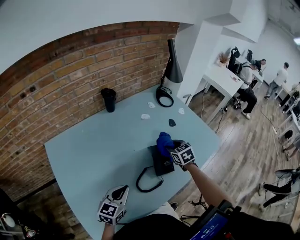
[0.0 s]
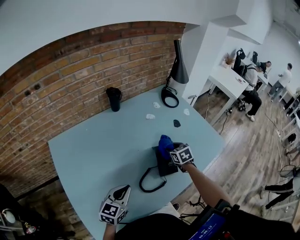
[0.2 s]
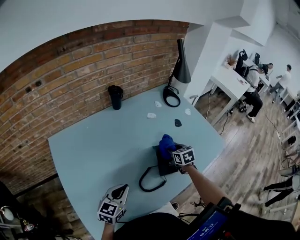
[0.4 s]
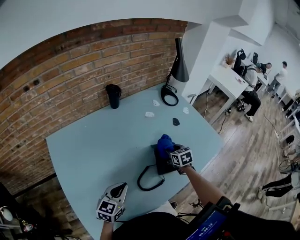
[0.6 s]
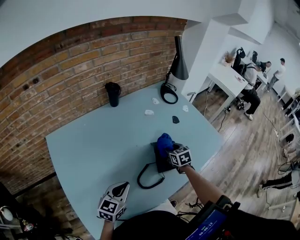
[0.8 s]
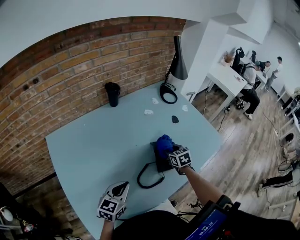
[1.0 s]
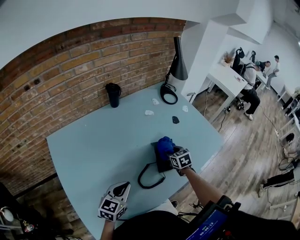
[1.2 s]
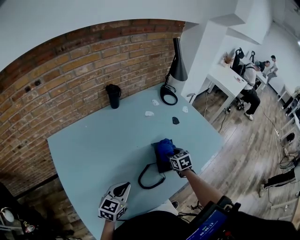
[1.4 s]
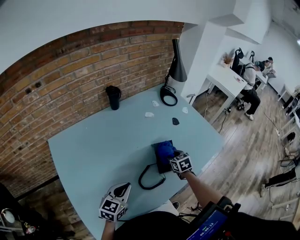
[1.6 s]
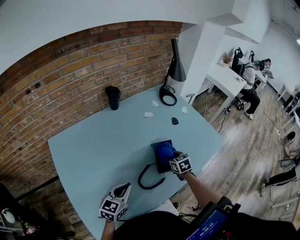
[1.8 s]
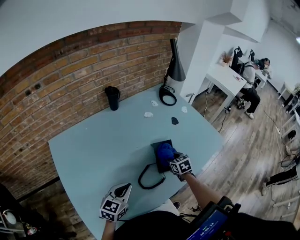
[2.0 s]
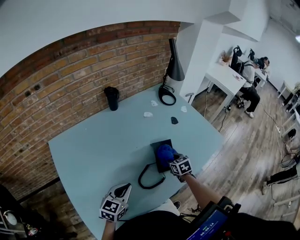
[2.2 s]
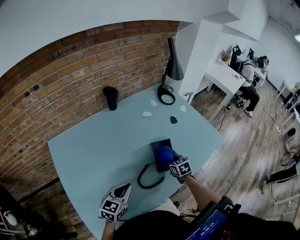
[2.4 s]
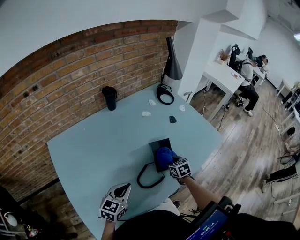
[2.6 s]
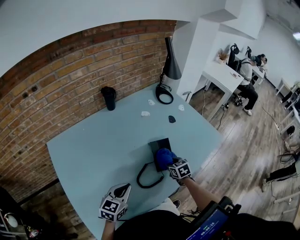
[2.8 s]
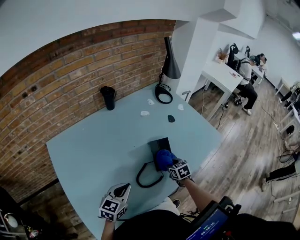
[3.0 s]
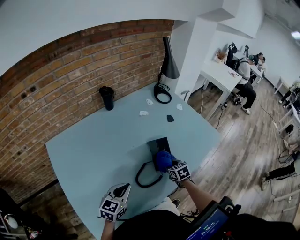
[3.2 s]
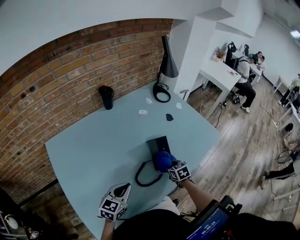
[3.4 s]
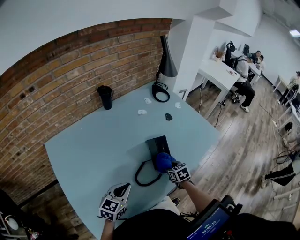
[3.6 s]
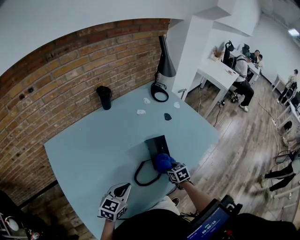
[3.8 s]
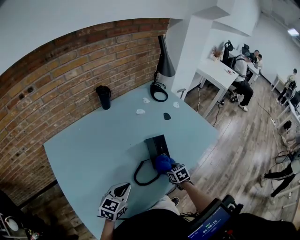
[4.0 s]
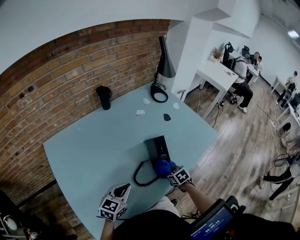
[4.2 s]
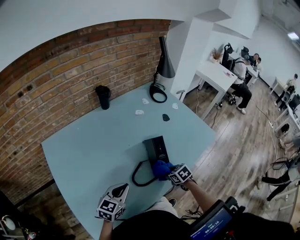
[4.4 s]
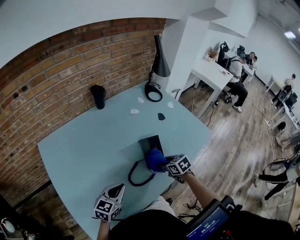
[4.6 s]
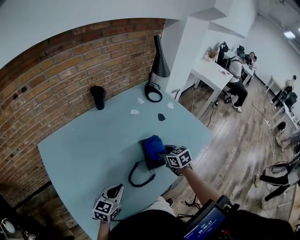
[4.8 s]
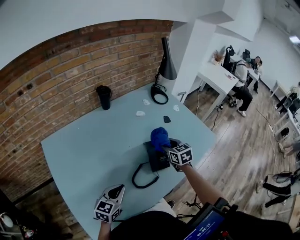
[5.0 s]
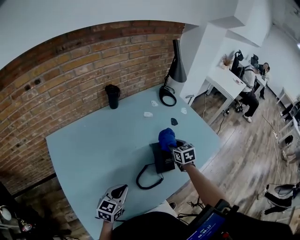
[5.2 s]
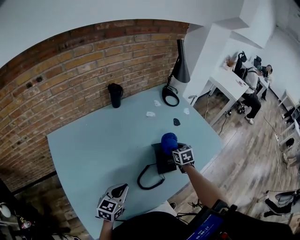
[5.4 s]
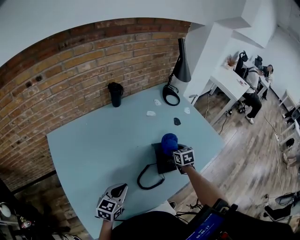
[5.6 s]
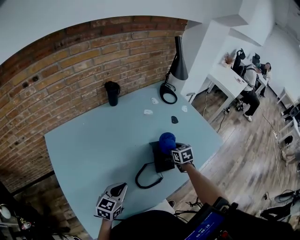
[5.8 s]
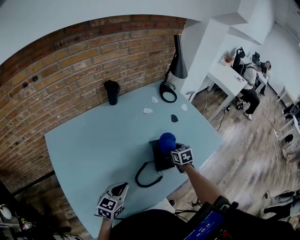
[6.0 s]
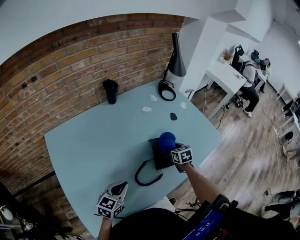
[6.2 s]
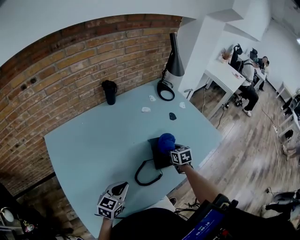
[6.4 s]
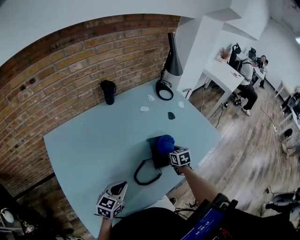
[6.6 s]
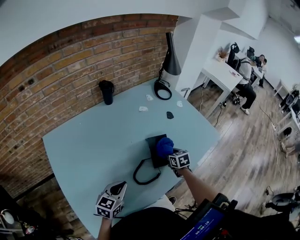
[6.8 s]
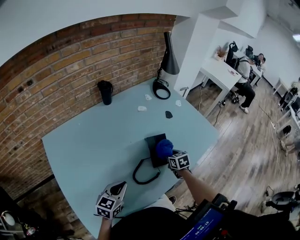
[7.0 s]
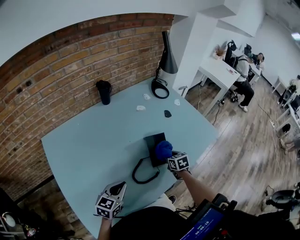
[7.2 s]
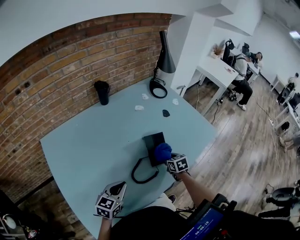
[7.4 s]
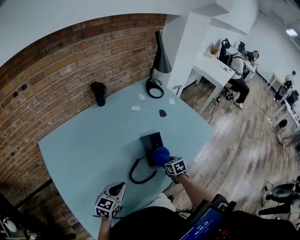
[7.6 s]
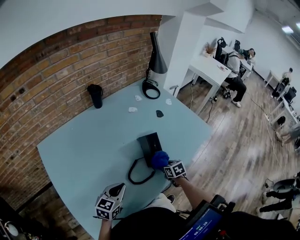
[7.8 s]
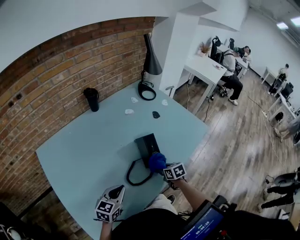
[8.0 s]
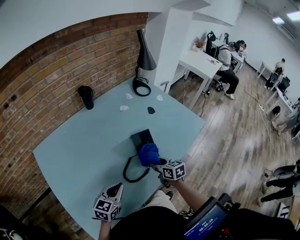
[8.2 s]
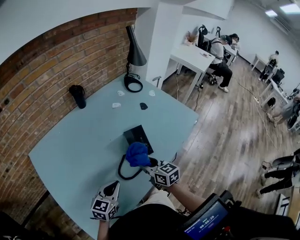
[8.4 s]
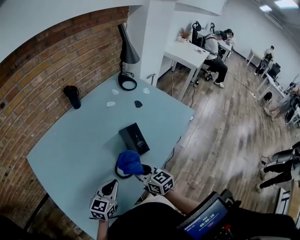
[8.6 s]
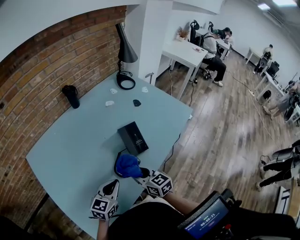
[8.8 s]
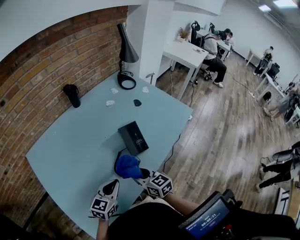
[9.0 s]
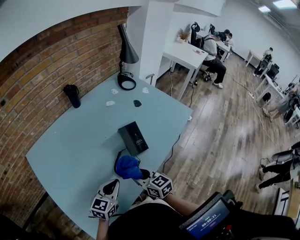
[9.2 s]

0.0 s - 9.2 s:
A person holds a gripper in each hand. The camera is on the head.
0.0 s - 1.6 s: The right gripper goes approximately 5 cm downward.
1.6 s - 3.0 s: The right gripper moves backward, approximately 5 cm.
3.0 s - 4.6 s: The right gripper moves approximately 5 cm.
4.6 s - 6.2 s: The right gripper goes approximately 10 cm forward.
6.2 s - 7.6 s: The right gripper travels backward and downward by approximately 10 cm.
7.6 s - 9.2 s: The left gripper shifts by approximately 5 cm. Meanwhile the right gripper shifts roughly 20 cm backward, upward and to the left, and points its fingers about 30 degrees further upward.

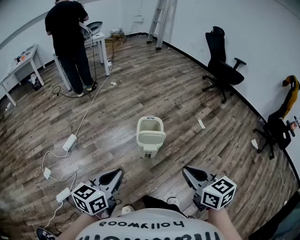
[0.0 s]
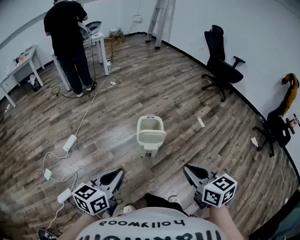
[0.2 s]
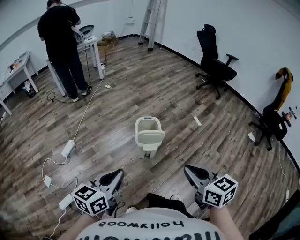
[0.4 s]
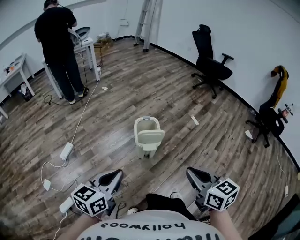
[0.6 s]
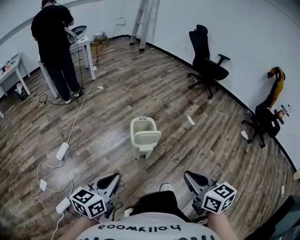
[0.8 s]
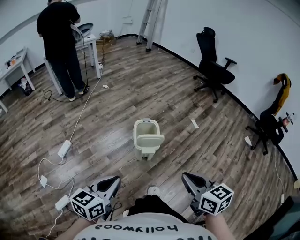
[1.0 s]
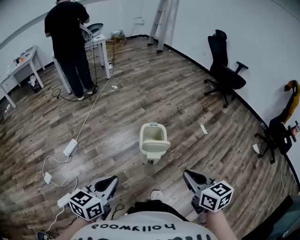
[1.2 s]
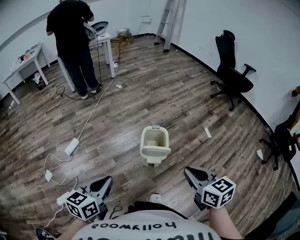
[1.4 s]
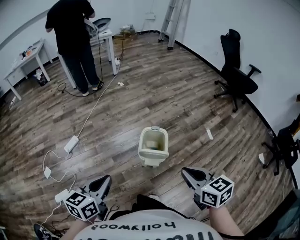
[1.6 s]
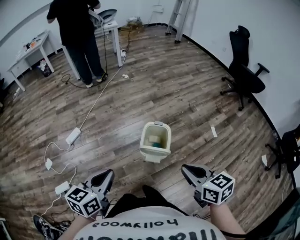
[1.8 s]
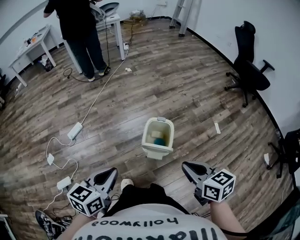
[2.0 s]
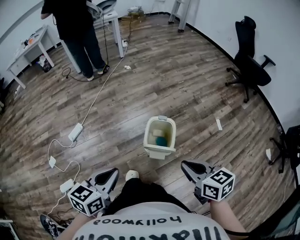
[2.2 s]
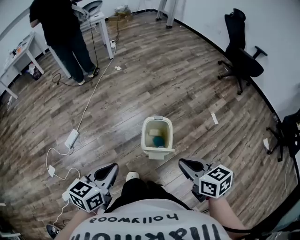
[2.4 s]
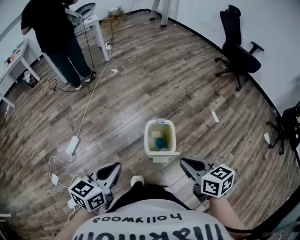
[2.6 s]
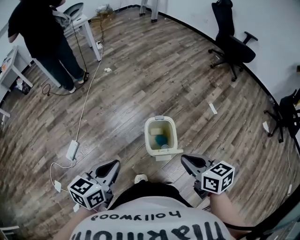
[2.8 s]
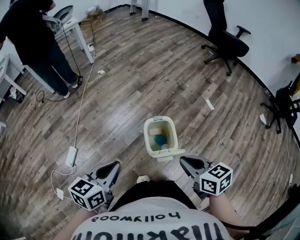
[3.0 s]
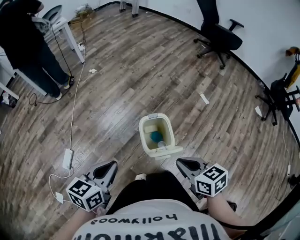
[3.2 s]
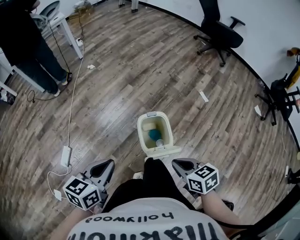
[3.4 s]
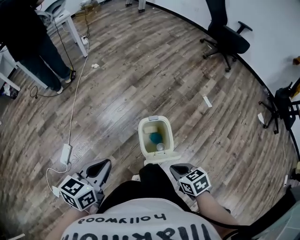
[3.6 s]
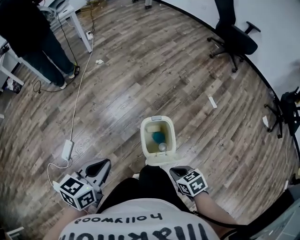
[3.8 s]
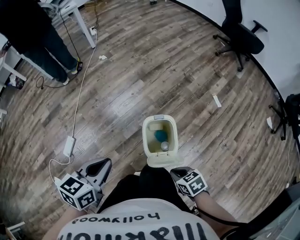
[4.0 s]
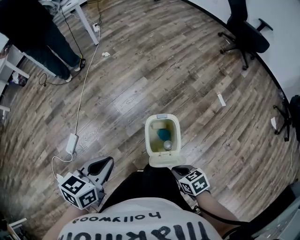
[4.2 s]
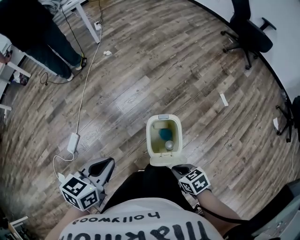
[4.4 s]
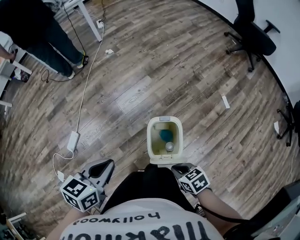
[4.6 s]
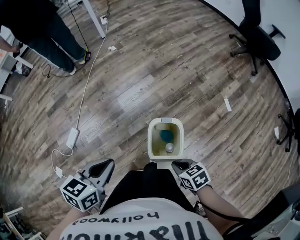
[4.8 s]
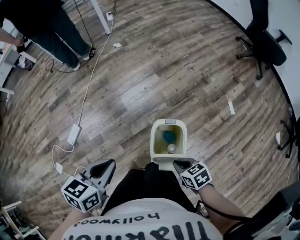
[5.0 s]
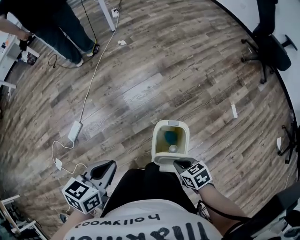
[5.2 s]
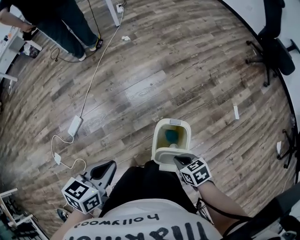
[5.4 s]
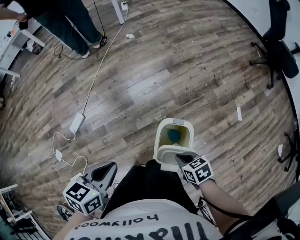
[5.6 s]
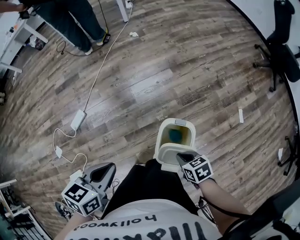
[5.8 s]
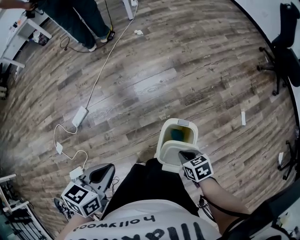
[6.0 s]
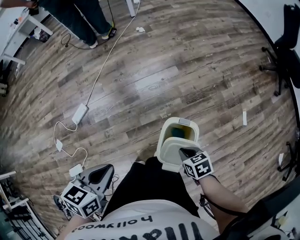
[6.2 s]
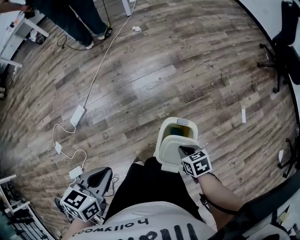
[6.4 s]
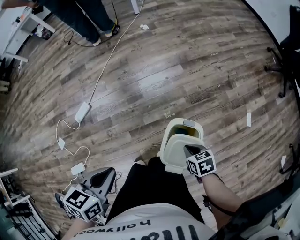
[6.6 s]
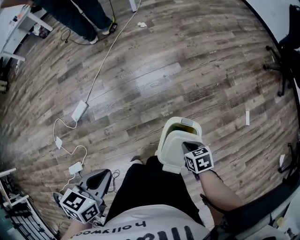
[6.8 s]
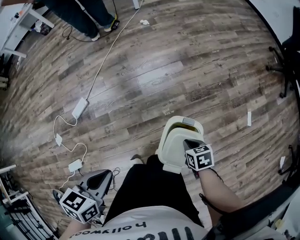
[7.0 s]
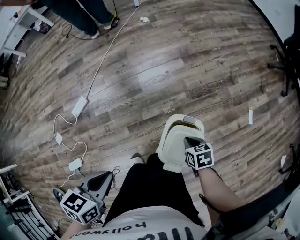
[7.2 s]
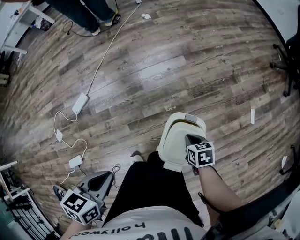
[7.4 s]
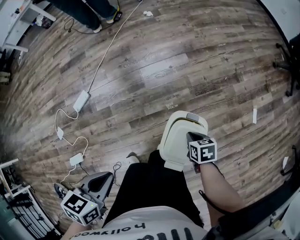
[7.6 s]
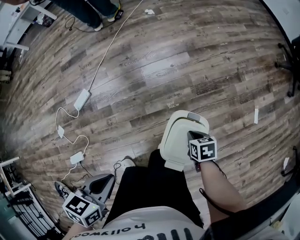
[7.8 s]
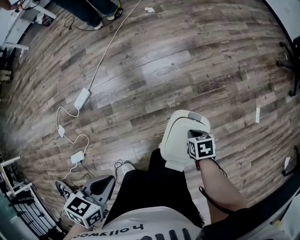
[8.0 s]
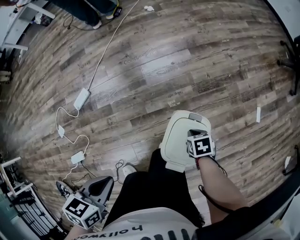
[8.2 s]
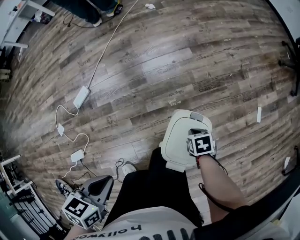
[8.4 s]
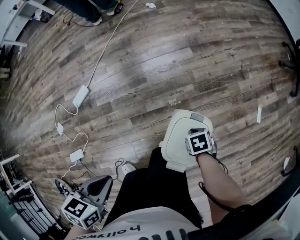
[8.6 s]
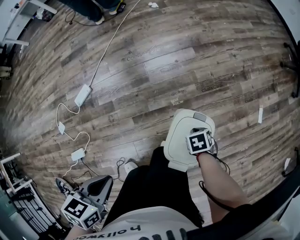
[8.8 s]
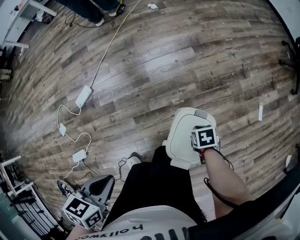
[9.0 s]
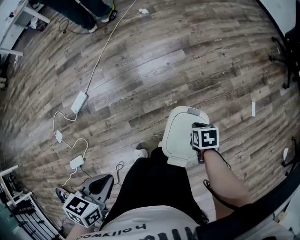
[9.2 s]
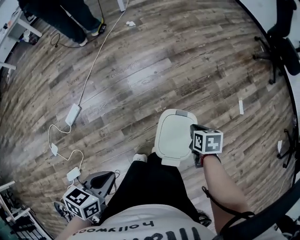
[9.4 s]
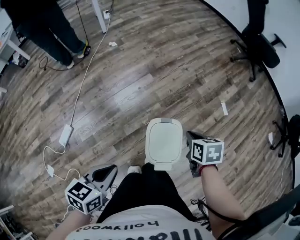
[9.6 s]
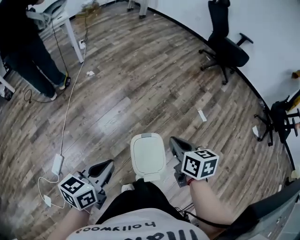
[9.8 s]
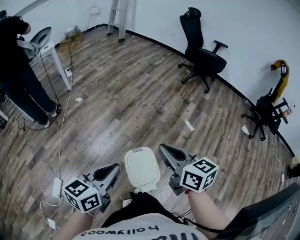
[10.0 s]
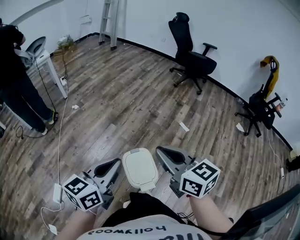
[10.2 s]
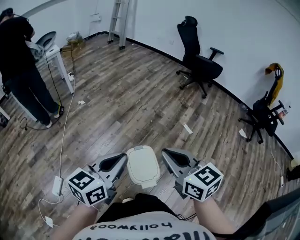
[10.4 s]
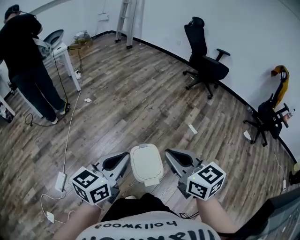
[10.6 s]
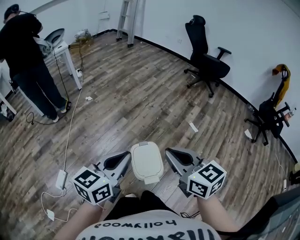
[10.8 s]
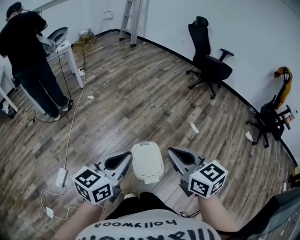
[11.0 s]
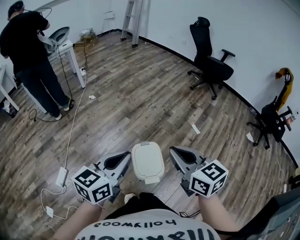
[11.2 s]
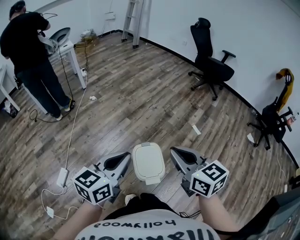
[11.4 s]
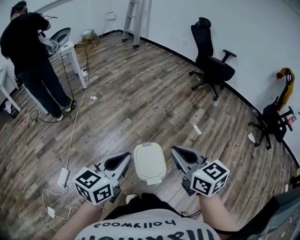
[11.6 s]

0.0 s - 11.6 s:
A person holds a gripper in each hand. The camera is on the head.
0.0 s - 1.4 s: The left gripper is displaced forward and to the left by about 10 cm. The right gripper shifts about 10 cm forward.
1.4 s - 2.8 s: The left gripper shifts about 20 cm forward. The right gripper goes approximately 15 cm forward and downward.
2.8 s - 4.4 s: The left gripper moves forward, some 10 cm, while the right gripper shifts approximately 20 cm downward, and turns by some 30 degrees.
4.4 s - 5.8 s: The right gripper is displaced forward by some 10 cm.
5.8 s - 7.2 s: The right gripper shifts approximately 10 cm downward and forward; the left gripper changes place by approximately 5 cm.
7.2 s - 8.8 s: The right gripper moves downward, approximately 10 cm, and turns by some 20 degrees.
8.8 s - 10.2 s: The left gripper heads upward, covering about 25 cm, and points its fingers about 50 degrees further upward; the right gripper moves upward, some 50 cm, and tips its fingers upward by about 70 degrees.
10.2 s - 11.6 s: There are only small adjustments of the grippers.

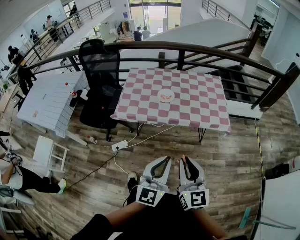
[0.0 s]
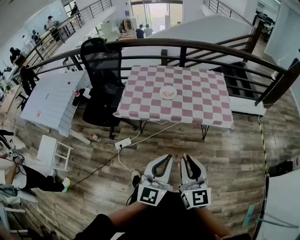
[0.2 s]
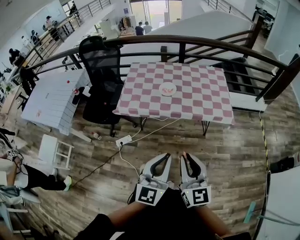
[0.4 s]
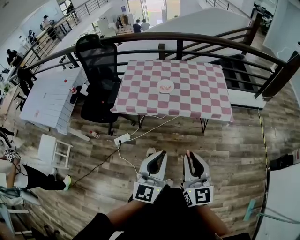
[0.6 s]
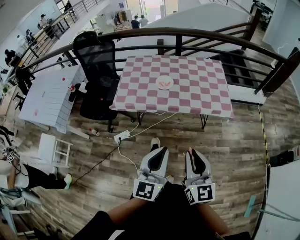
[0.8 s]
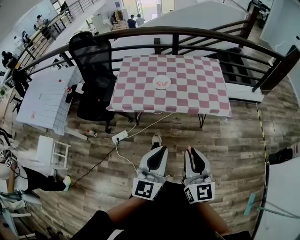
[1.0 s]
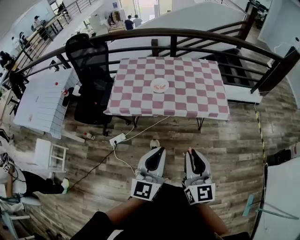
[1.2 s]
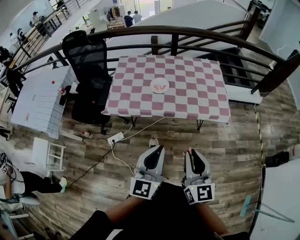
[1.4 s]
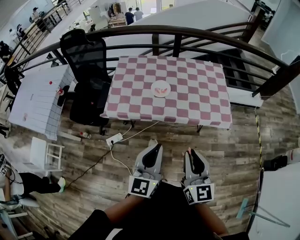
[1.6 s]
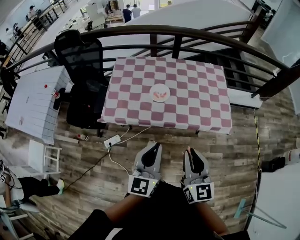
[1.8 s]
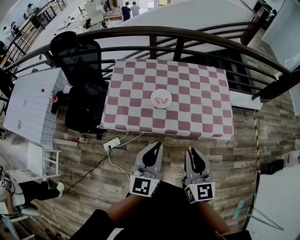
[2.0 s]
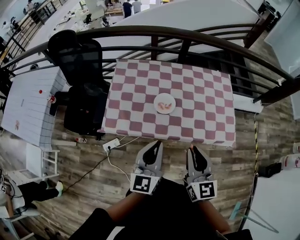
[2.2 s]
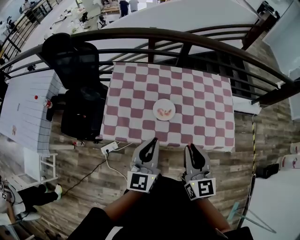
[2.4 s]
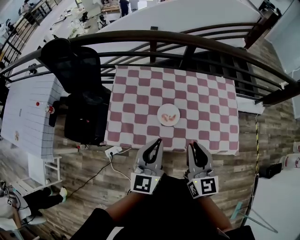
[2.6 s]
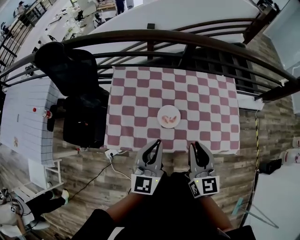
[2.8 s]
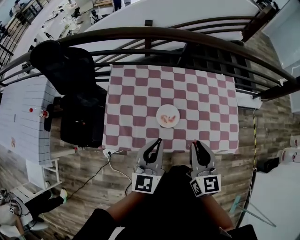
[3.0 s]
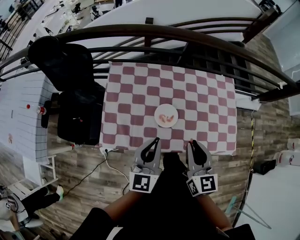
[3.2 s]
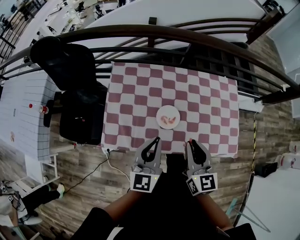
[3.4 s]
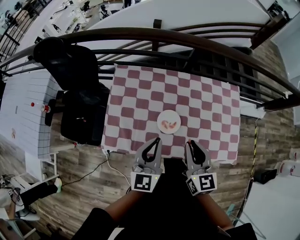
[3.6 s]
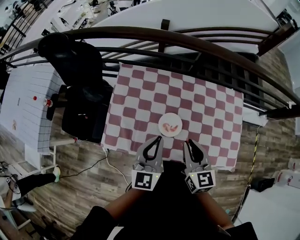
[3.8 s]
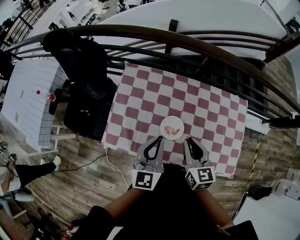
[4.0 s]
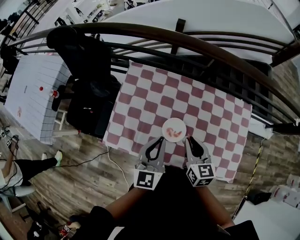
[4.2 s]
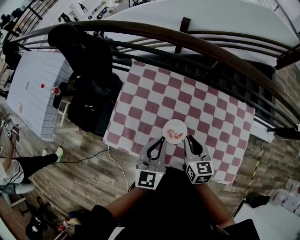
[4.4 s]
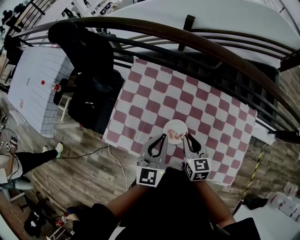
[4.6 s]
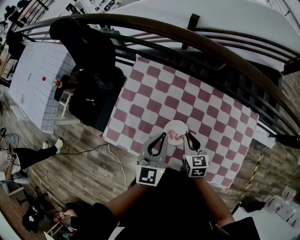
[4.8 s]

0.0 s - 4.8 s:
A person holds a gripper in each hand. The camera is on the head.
0.0 s - 1.6 s: The grippers both shift forward by roughly 15 cm.
1.6 s - 3.2 s: Both grippers move forward, about 35 cm.
3.2 s - 4.8 s: The left gripper heads forward, covering roughly 15 cm. The right gripper goes about 25 cm downward and forward, and turns by roughly 30 degrees.
